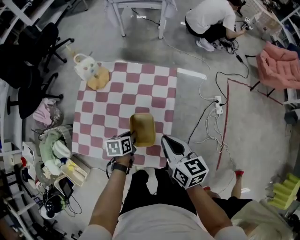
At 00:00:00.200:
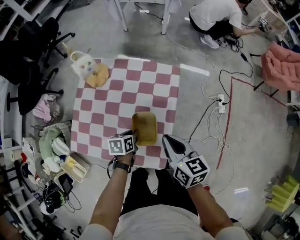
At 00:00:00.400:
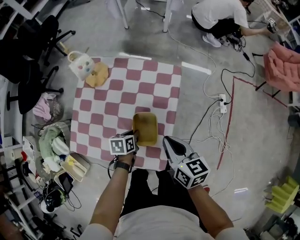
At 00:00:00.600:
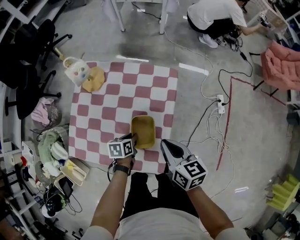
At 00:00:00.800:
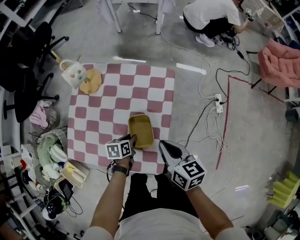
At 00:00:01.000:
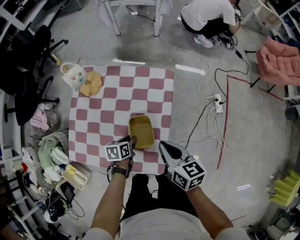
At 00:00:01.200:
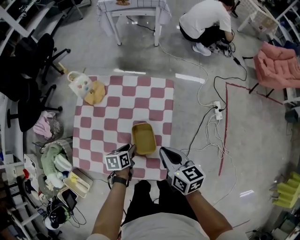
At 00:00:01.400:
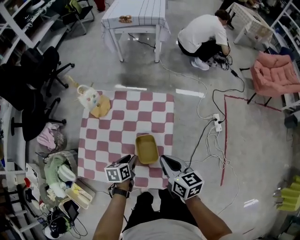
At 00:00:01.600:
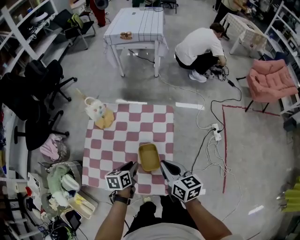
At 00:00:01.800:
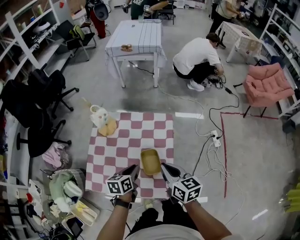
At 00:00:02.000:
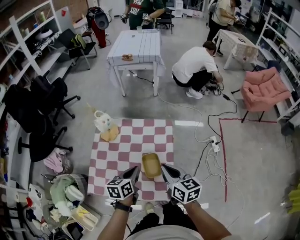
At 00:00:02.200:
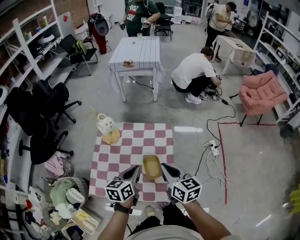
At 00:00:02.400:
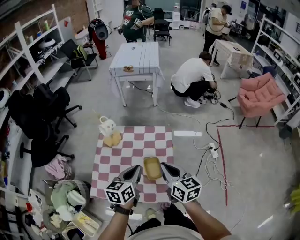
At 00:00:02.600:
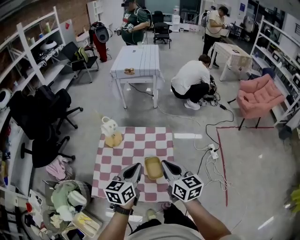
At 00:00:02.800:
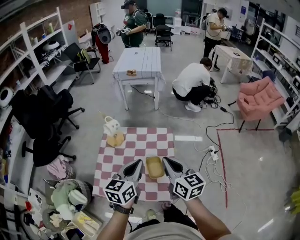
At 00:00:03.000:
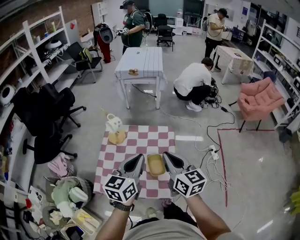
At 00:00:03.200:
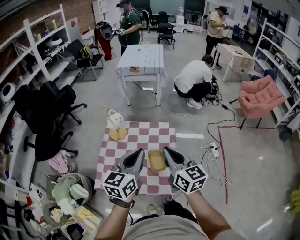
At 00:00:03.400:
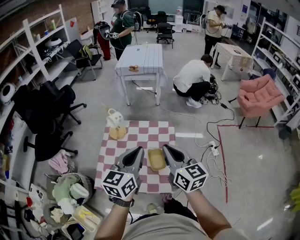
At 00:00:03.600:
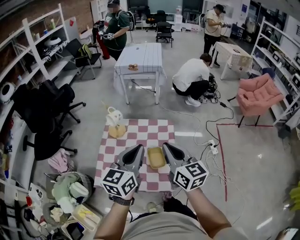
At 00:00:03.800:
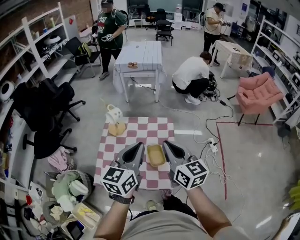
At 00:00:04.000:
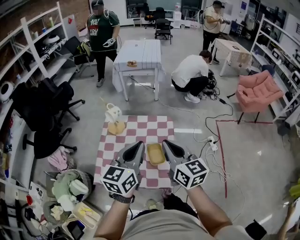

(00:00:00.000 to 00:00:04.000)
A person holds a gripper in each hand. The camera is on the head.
00:00:00.000 - 00:00:01.400: The left gripper moves some 5 cm downward and comes back.
00:00:01.400 - 00:00:02.600: The left gripper goes approximately 30 cm upward, tilts its fingers roughly 30 degrees upward, and closes its fingers; the right gripper shifts roughly 15 cm upward.
00:00:02.600 - 00:00:04.000: Both grippers move upward, some 10 cm.

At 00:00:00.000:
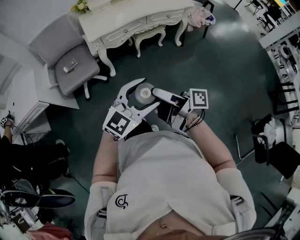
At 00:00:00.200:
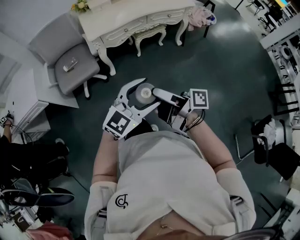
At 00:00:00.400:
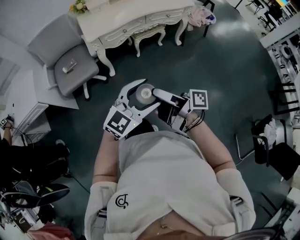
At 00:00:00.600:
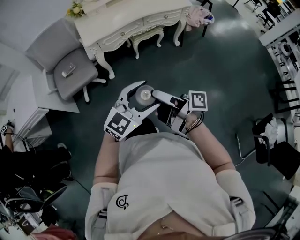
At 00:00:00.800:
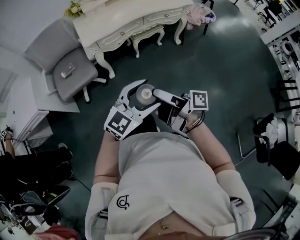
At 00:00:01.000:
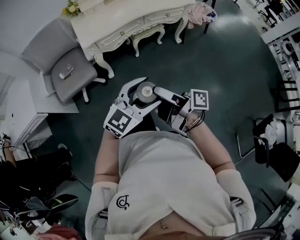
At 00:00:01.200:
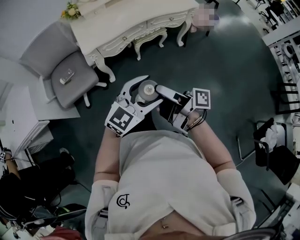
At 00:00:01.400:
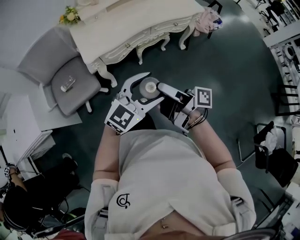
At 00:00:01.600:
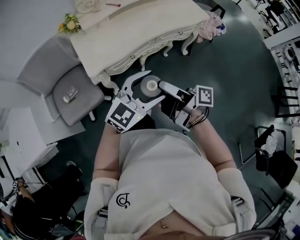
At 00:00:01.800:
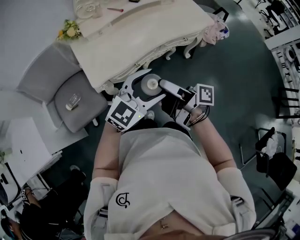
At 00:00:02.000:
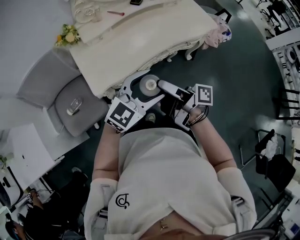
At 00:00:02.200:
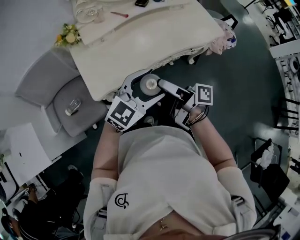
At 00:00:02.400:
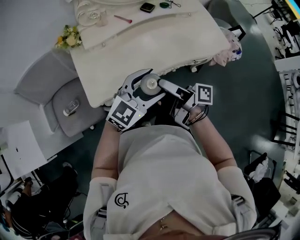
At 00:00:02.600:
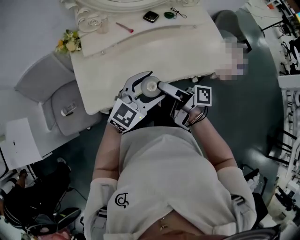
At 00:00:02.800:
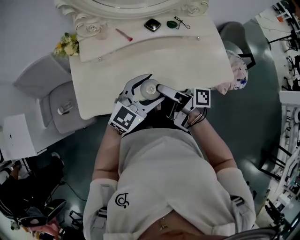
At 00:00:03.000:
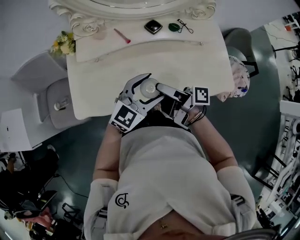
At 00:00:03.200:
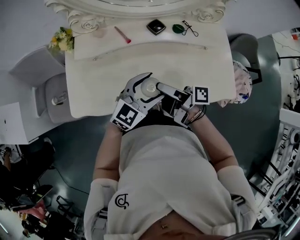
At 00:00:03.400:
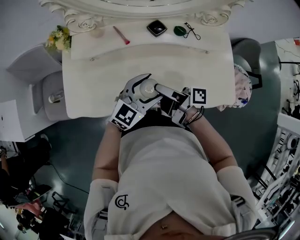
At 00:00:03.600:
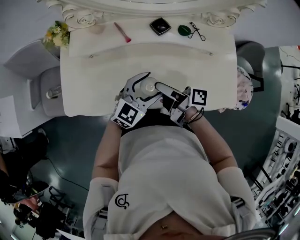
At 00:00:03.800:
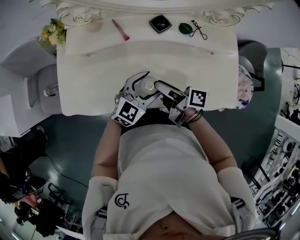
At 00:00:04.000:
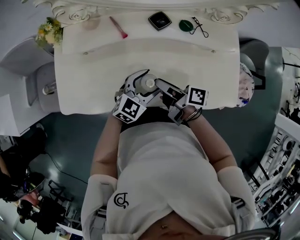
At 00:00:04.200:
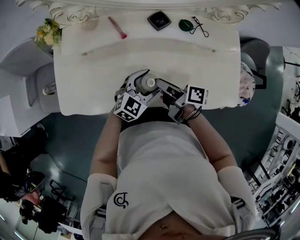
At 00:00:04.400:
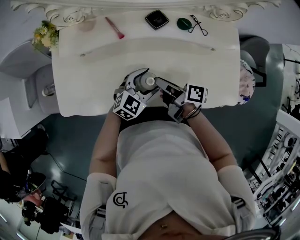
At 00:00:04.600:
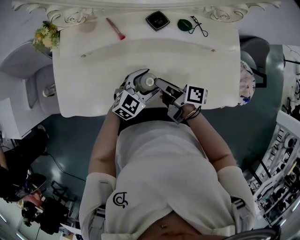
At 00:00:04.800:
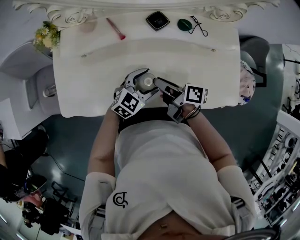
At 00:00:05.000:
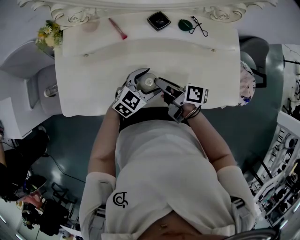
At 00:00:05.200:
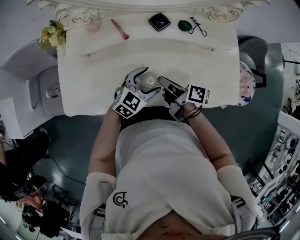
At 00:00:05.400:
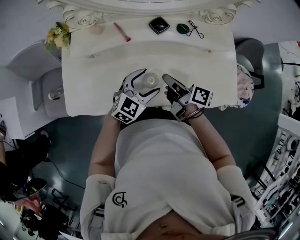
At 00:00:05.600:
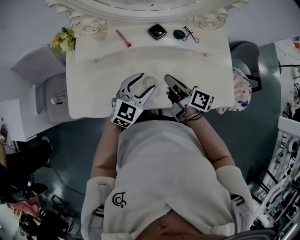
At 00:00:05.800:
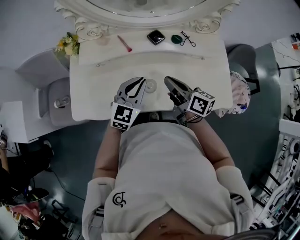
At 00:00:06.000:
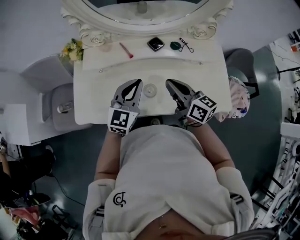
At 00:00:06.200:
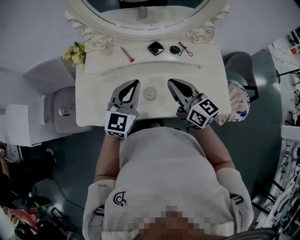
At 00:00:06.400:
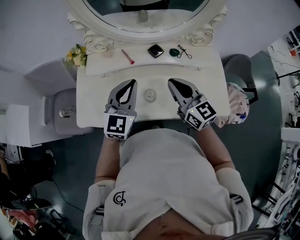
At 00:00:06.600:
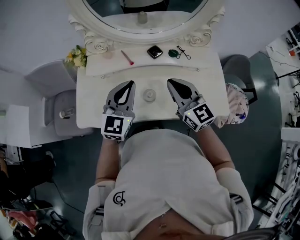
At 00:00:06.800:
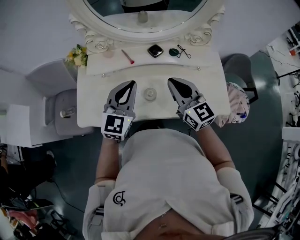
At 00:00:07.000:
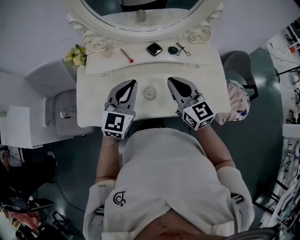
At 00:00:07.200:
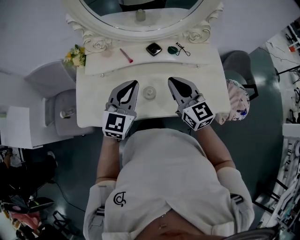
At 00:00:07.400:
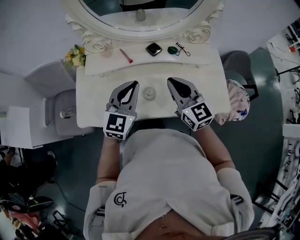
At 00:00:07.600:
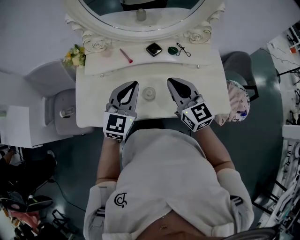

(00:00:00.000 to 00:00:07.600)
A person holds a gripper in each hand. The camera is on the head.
00:00:00.000 - 00:00:01.600: The left gripper ends up about 35 cm from where it was.
00:00:01.600 - 00:00:03.000: The left gripper shifts by approximately 40 cm, and swivels roughly 30 degrees.
00:00:03.000 - 00:00:04.600: The left gripper heads downward, covering approximately 20 cm.
00:00:04.600 - 00:00:06.000: The left gripper moves upward, about 20 cm, changes its angle by roughly 30 degrees, and closes.
00:00:06.000 - 00:00:07.600: The left gripper ends up roughly 5 cm from where it was.

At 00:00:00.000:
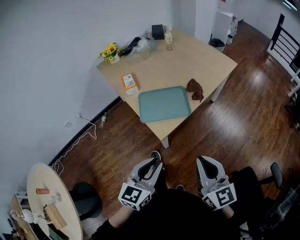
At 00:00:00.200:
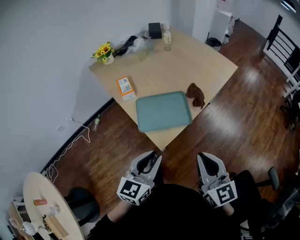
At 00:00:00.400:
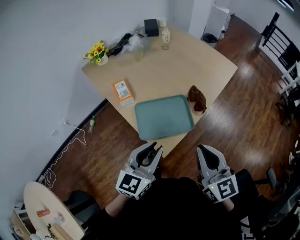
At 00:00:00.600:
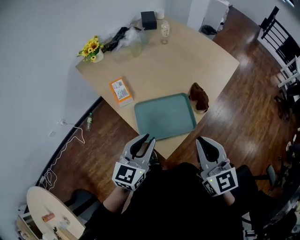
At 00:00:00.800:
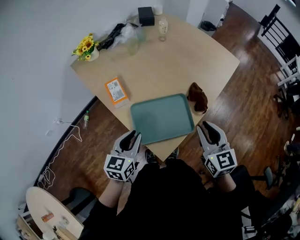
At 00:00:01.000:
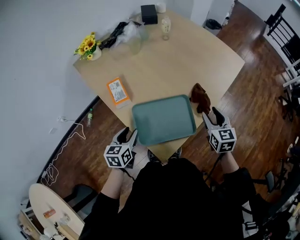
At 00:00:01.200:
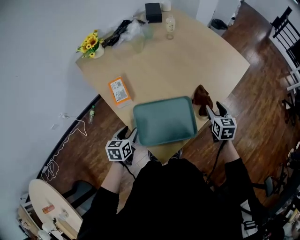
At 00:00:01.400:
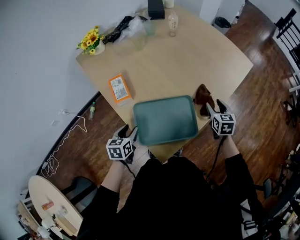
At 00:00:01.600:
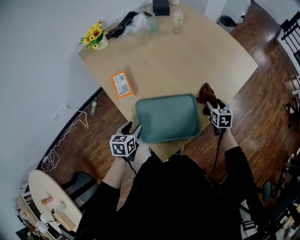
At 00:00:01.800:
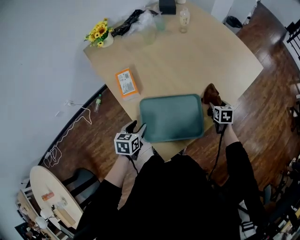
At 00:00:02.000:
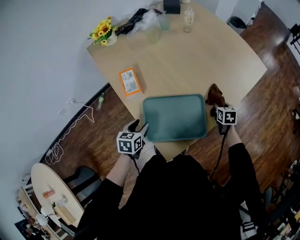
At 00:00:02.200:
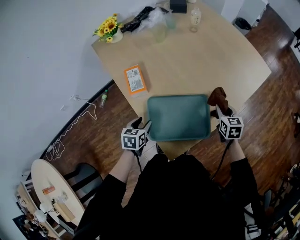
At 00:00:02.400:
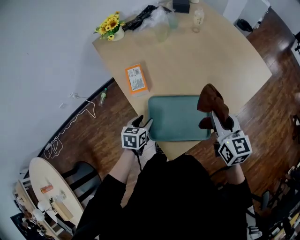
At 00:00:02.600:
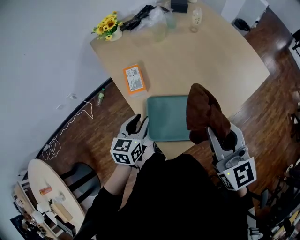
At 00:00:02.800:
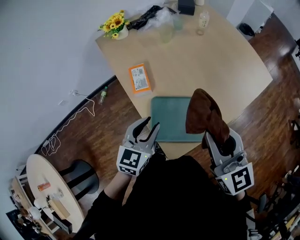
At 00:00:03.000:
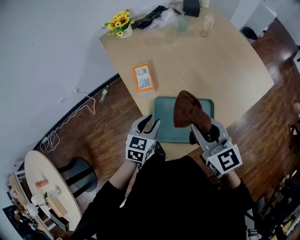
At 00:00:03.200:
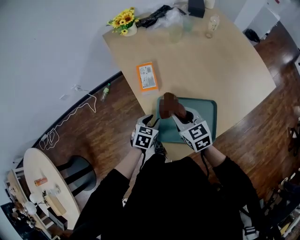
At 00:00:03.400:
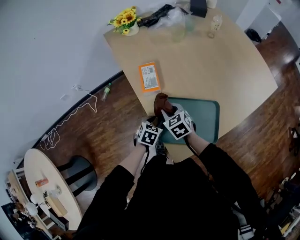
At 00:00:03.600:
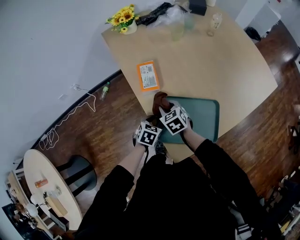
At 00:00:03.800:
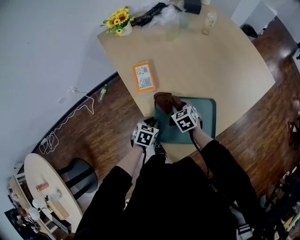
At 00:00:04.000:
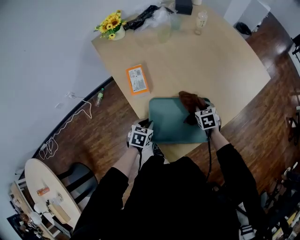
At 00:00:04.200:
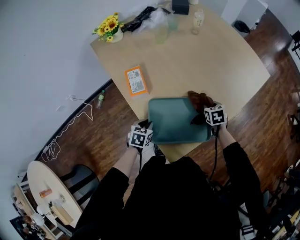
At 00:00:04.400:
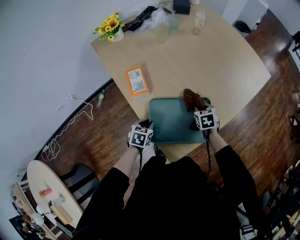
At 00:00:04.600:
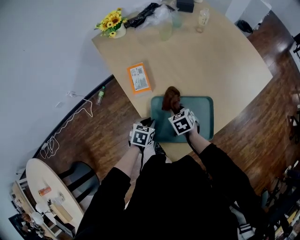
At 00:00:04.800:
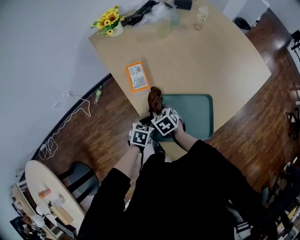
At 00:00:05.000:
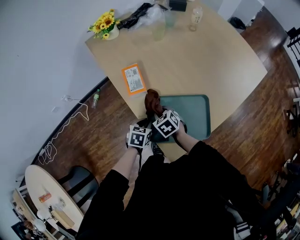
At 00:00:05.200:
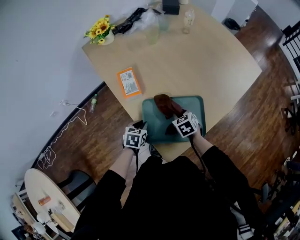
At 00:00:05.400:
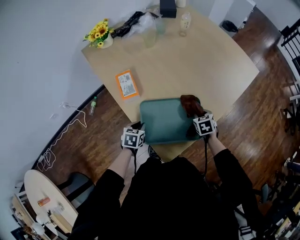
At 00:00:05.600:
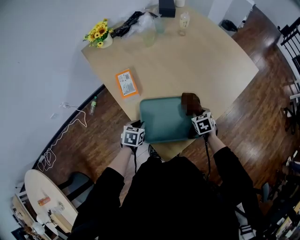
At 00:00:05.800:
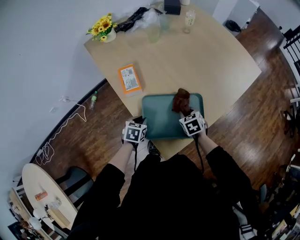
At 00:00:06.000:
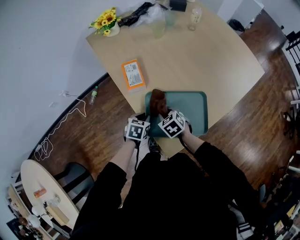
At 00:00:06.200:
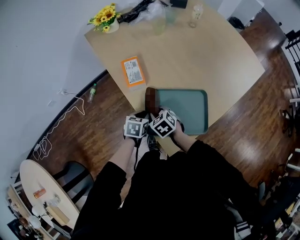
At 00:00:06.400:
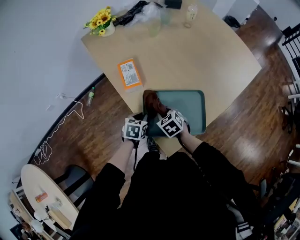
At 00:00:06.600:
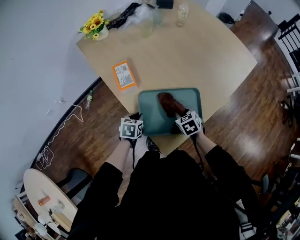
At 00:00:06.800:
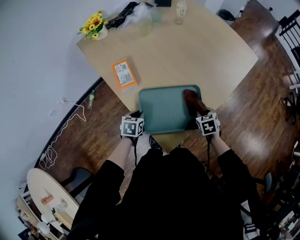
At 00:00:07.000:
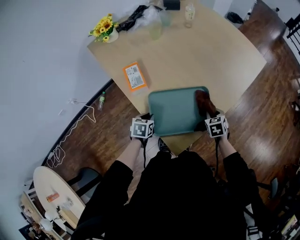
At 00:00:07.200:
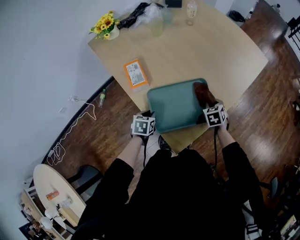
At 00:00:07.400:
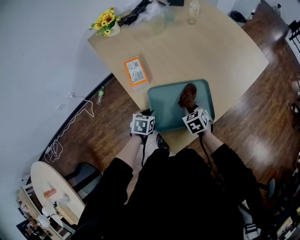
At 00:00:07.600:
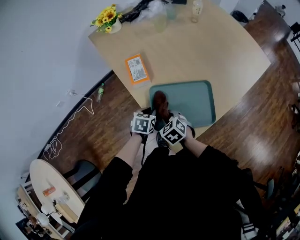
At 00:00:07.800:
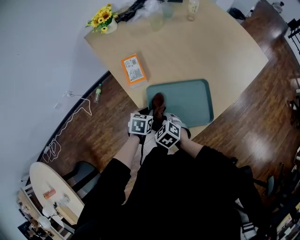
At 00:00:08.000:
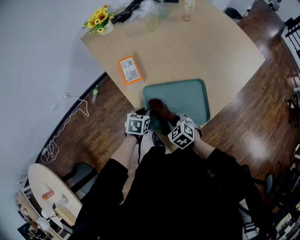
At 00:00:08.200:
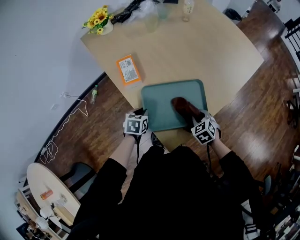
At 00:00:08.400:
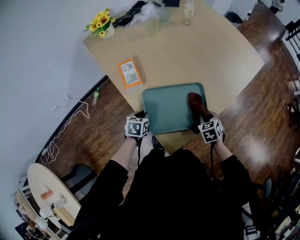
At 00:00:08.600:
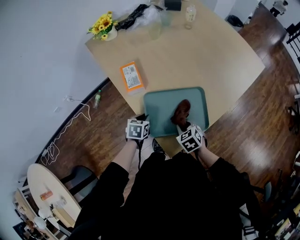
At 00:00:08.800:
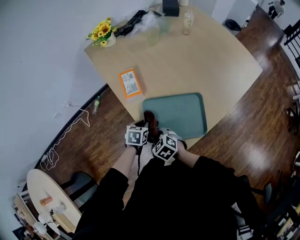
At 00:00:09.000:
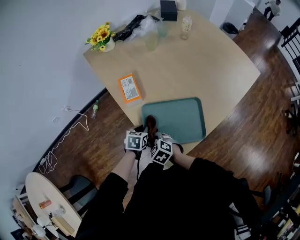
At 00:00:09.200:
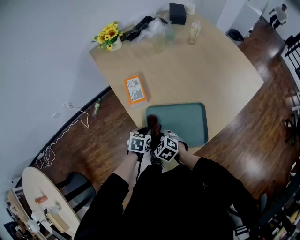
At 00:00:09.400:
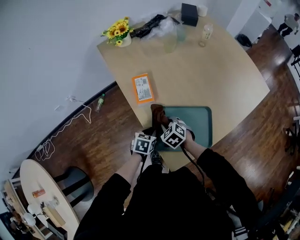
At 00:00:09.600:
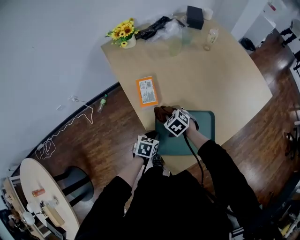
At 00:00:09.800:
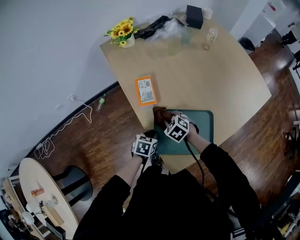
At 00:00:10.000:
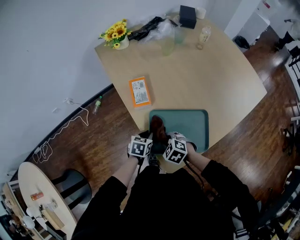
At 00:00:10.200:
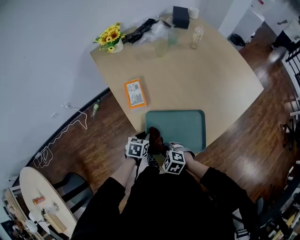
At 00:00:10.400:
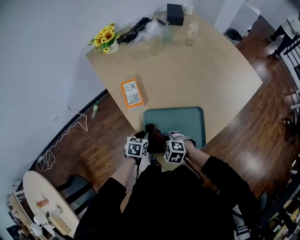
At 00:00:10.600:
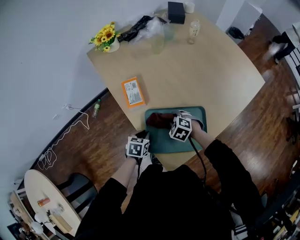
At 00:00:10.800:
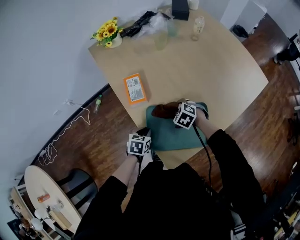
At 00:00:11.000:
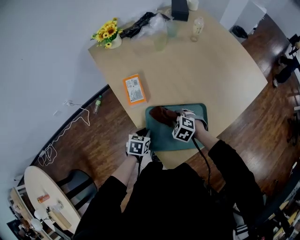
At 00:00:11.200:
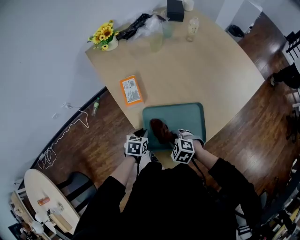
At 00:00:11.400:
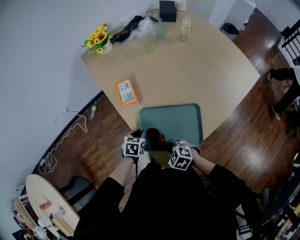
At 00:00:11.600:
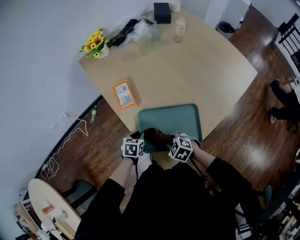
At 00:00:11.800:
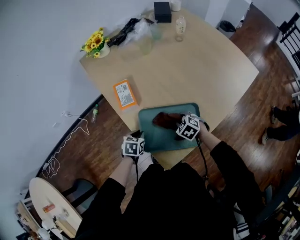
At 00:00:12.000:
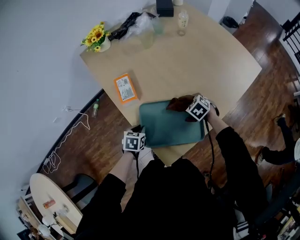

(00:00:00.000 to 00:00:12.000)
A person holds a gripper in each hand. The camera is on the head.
00:00:00.000 - 00:00:01.600: The right gripper is displaced forward and downward by roughly 60 cm, tips its fingers downward by approximately 40 degrees, and opens up, while the left gripper is displaced forward, downward and to the left by approximately 50 cm, tips its fingers downward by some 30 degrees, and opens its fingers.
00:00:01.600 - 00:00:03.000: The left gripper goes roughly 10 cm upward, while the right gripper swings up and down, roughly 35 cm each way, with 2 reversals, angles its fingers upward, by about 30 degrees, and closes.
00:00:03.000 - 00:00:04.400: The right gripper moves left and right over approximately 30 cm, changing direction 2 times, and tilts its fingers approximately 40 degrees downward. The left gripper is displaced downward by about 15 cm, and changes its angle by roughly 20 degrees.
00:00:04.400 - 00:00:06.000: The right gripper moves left and right over about 30 cm, changing direction 2 times, and swivels approximately 30 degrees.
00:00:06.000 - 00:00:07.600: The right gripper moves left and right over about 30 cm, changing direction 2 times.
00:00:09.000 - 00:00:10.400: The right gripper moves forward and backward over approximately 20 cm, changing direction 2 times.
00:00:10.400 - 00:00:12.000: The right gripper goes left and right, roughly 20 cm each way, reversing 2 times, and swivels roughly 30 degrees.
